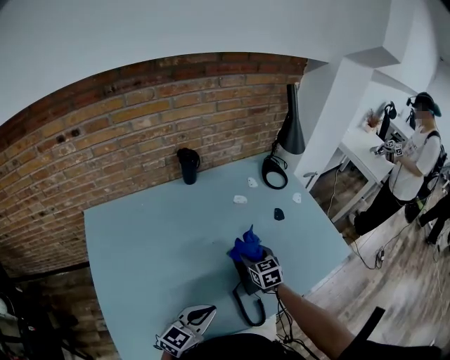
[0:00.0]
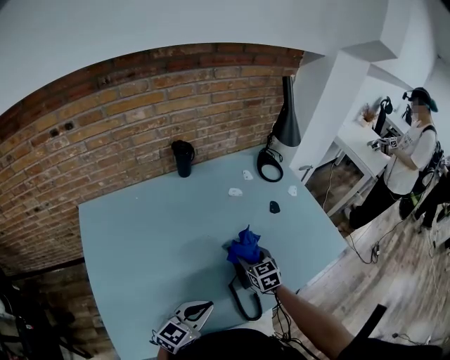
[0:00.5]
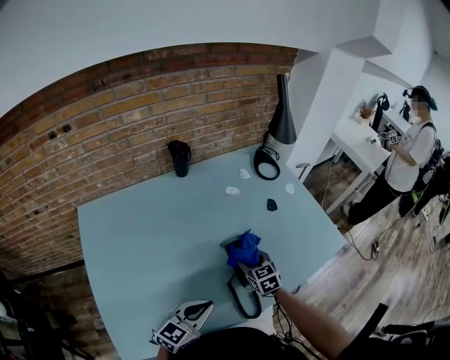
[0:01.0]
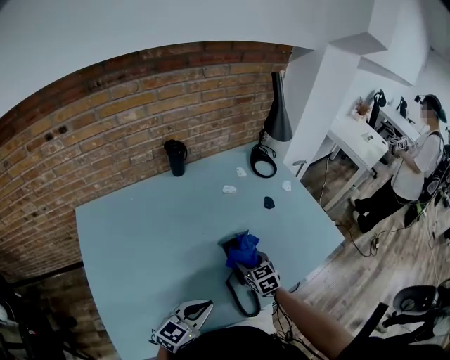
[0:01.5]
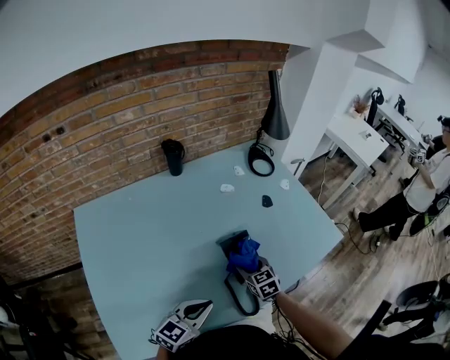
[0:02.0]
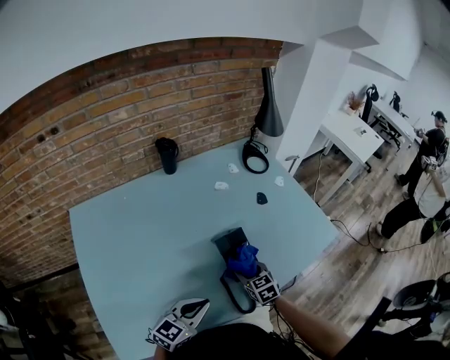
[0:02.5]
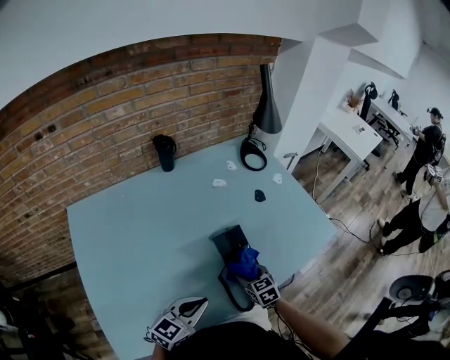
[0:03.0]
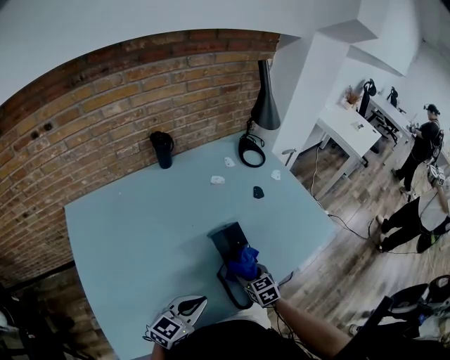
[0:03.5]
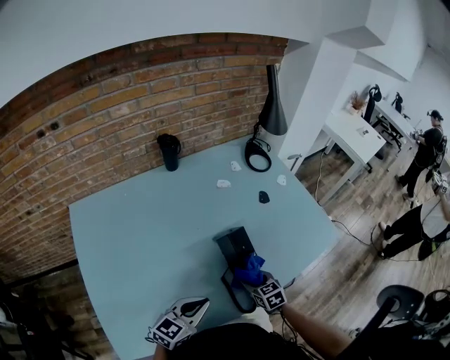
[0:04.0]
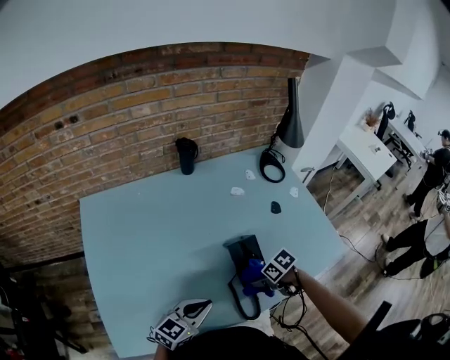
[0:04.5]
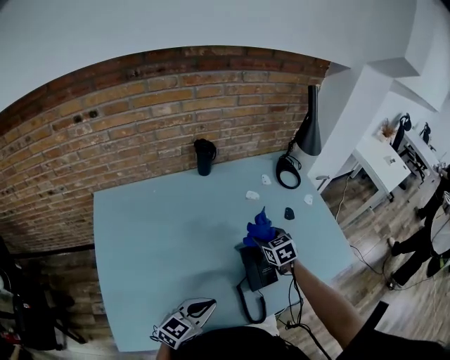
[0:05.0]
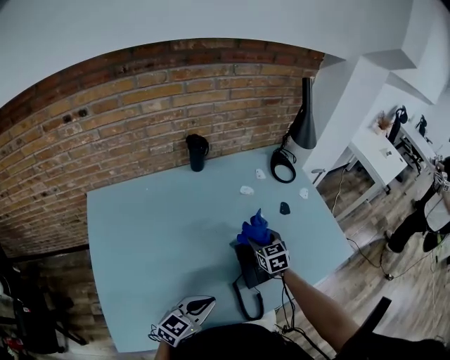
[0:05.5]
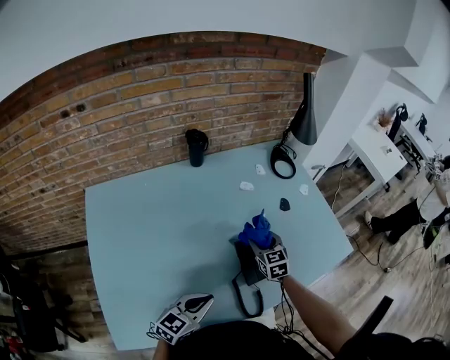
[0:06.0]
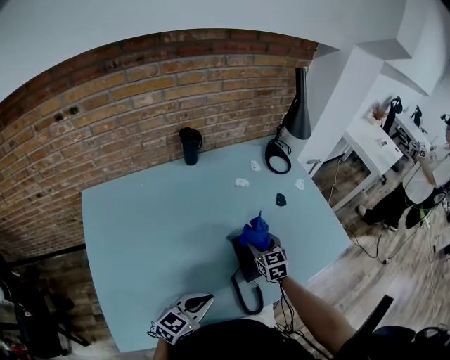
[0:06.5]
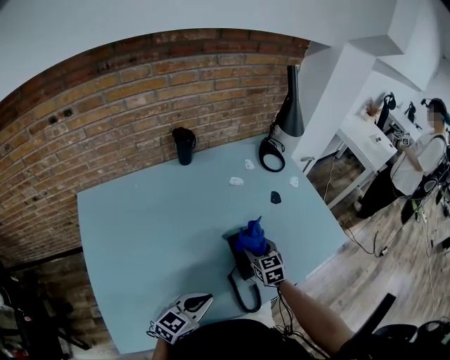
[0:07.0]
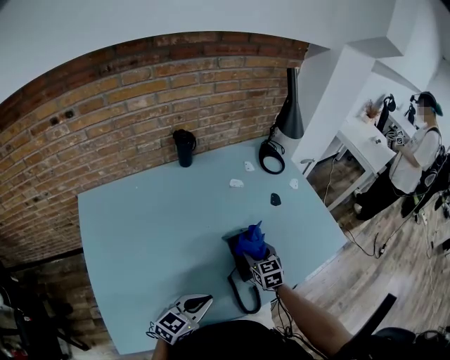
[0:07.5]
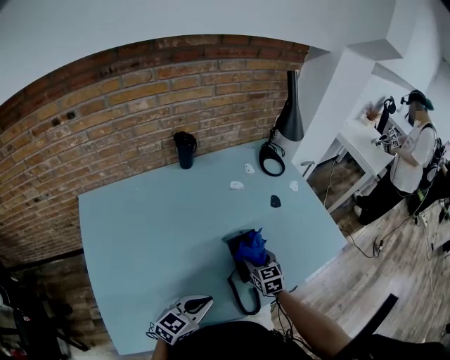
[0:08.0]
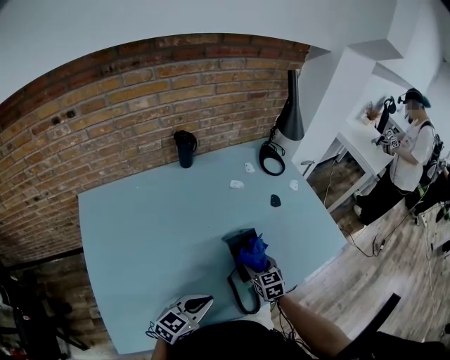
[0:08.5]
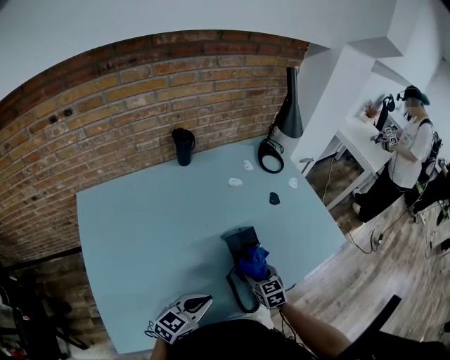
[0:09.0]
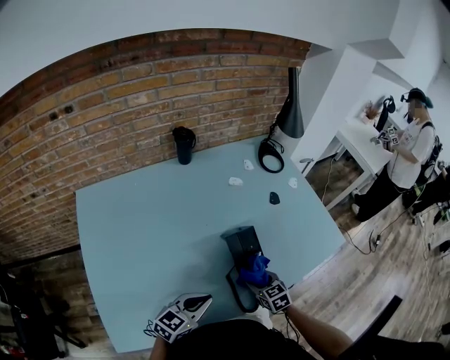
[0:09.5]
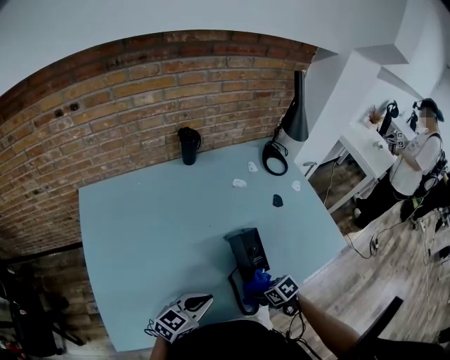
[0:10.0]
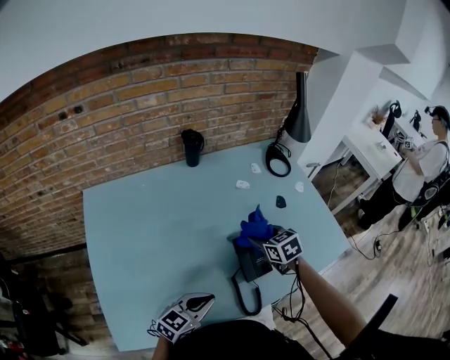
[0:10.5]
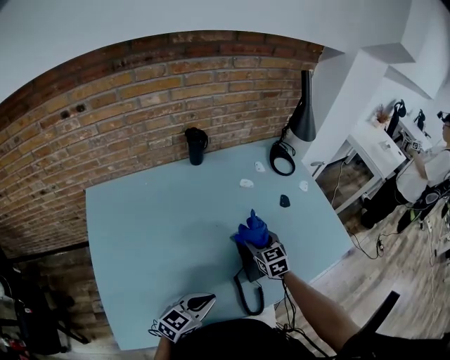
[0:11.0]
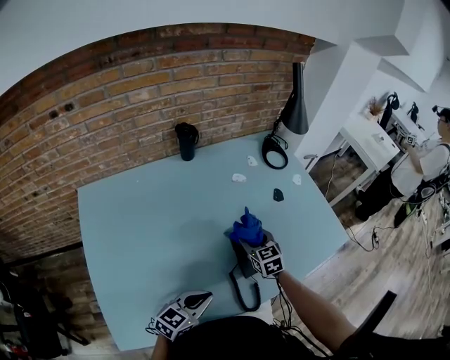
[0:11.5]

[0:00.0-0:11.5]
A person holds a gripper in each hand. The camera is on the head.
0:00.0 to 0:02.0: The right gripper shifts roughly 10 cm backward.
0:02.0 to 0:04.0: The right gripper is displaced backward by some 5 cm.
0:04.0 to 0:06.0: The right gripper moves approximately 20 cm.
0:06.0 to 0:07.5: The right gripper moves about 5 cm.
0:07.5 to 0:09.5: The right gripper goes some 10 cm backward and downward.
0:09.5 to 0:11.5: The right gripper shifts by about 15 cm.

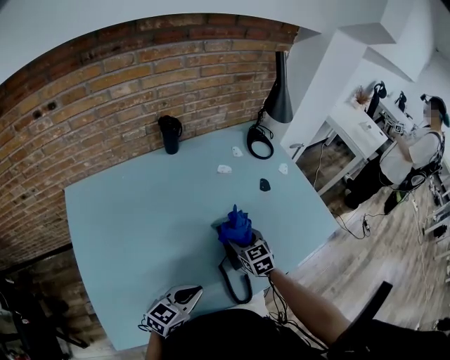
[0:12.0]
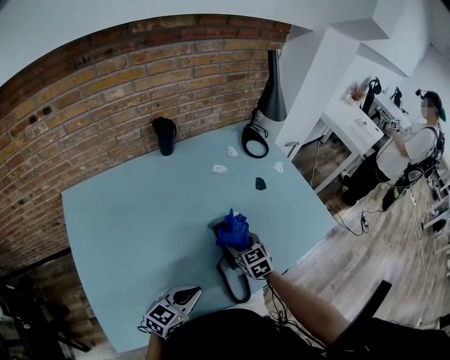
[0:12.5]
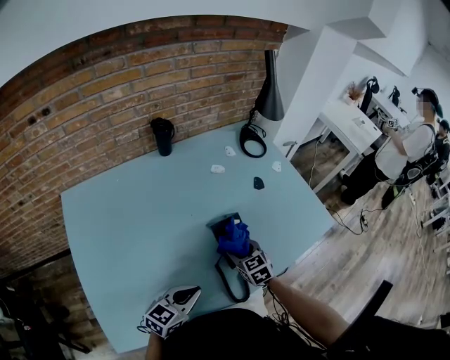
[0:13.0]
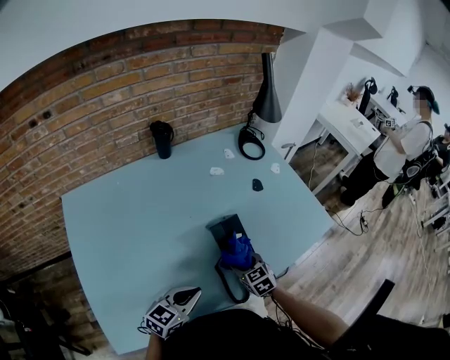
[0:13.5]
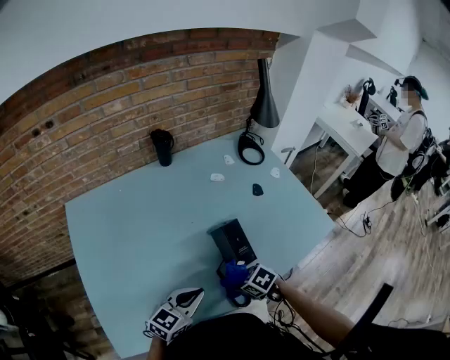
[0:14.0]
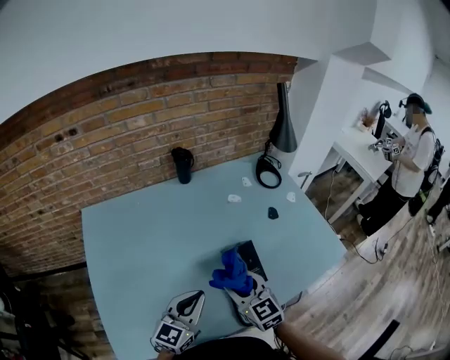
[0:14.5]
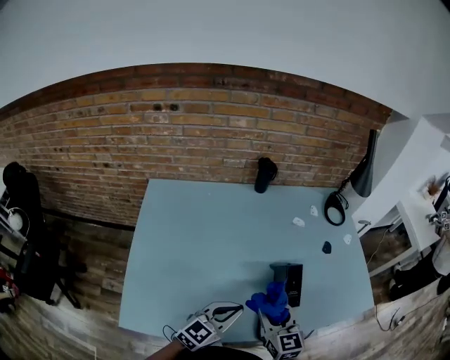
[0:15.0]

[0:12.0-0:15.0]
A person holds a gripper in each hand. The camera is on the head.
0:12.0 to 0:13.5: The right gripper shifts some 10 cm backward.
0:13.5 to 0:15.0: The left gripper shifts roughly 5 cm upward, and changes its angle by roughly 20 degrees, while the right gripper moves upward, about 15 cm, and changes its angle by roughly 30 degrees.

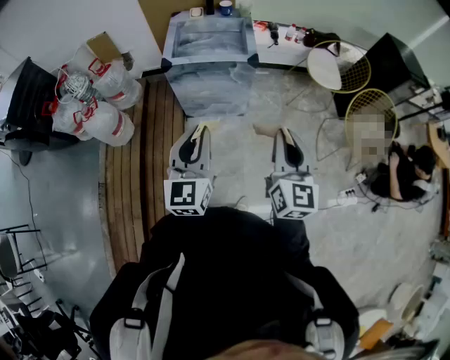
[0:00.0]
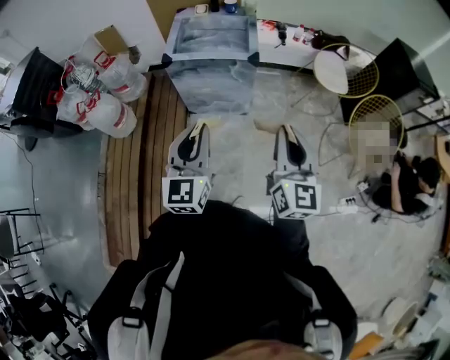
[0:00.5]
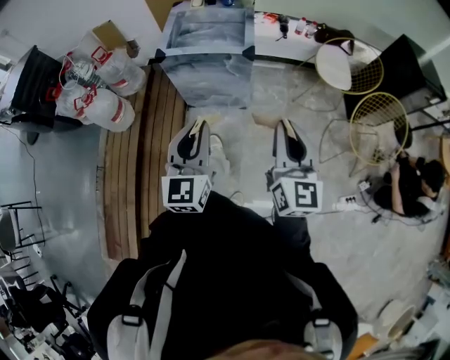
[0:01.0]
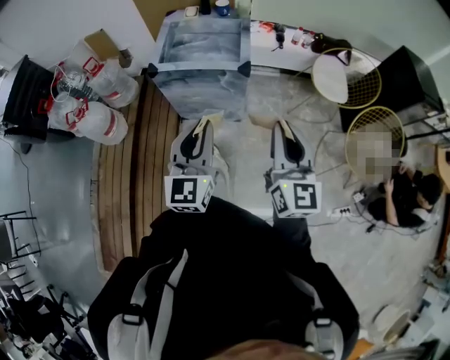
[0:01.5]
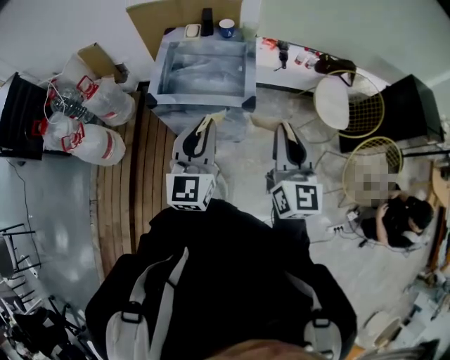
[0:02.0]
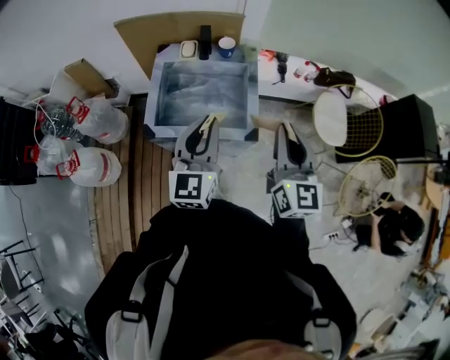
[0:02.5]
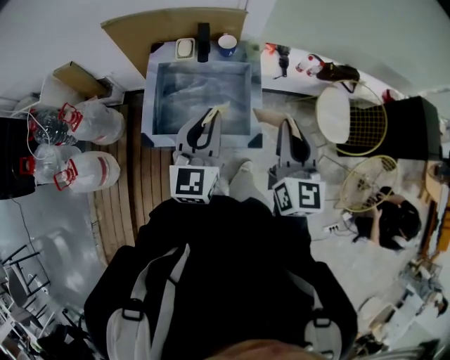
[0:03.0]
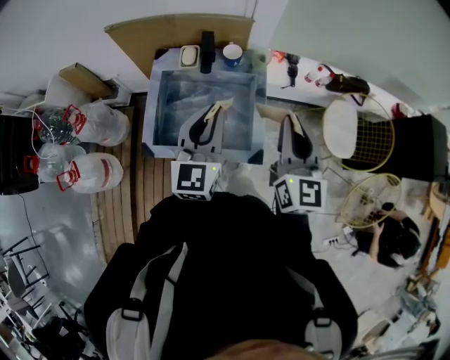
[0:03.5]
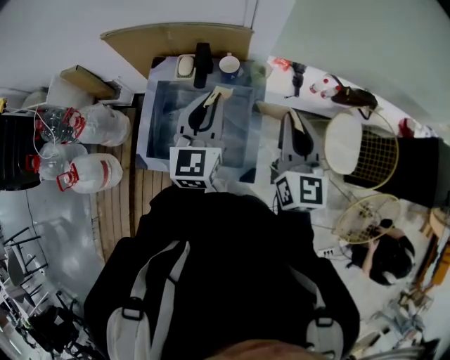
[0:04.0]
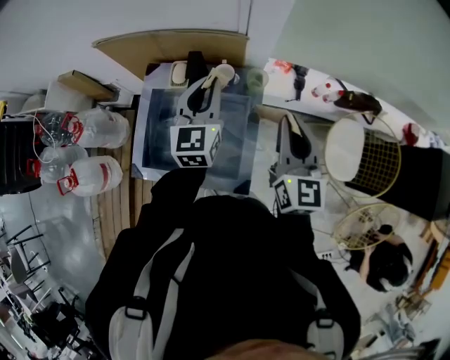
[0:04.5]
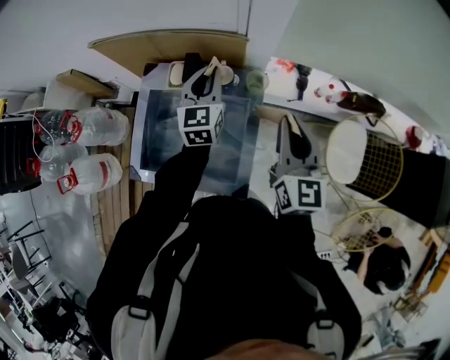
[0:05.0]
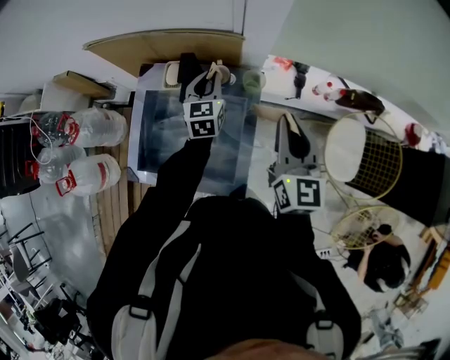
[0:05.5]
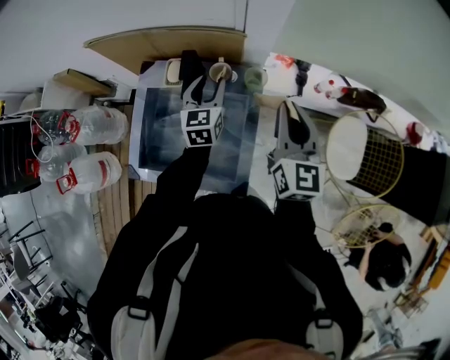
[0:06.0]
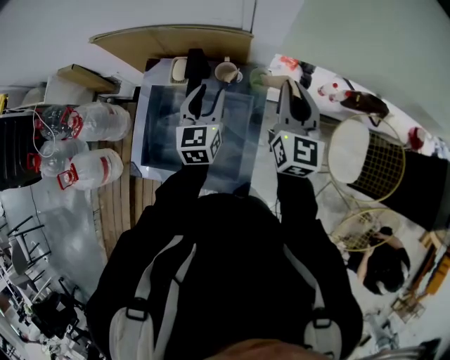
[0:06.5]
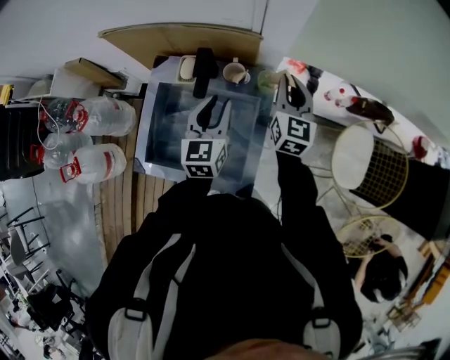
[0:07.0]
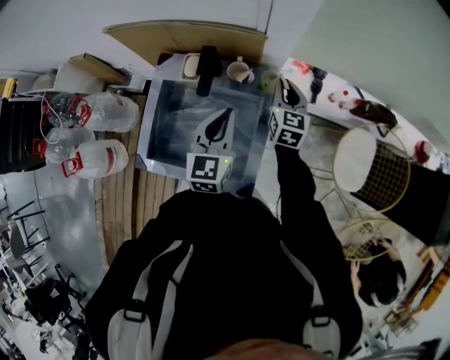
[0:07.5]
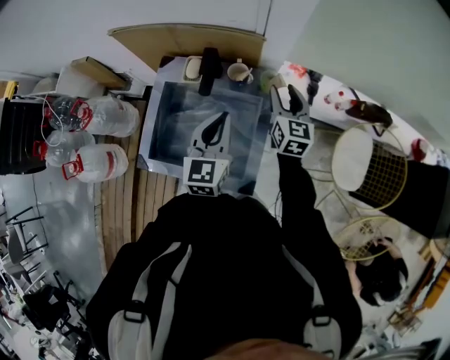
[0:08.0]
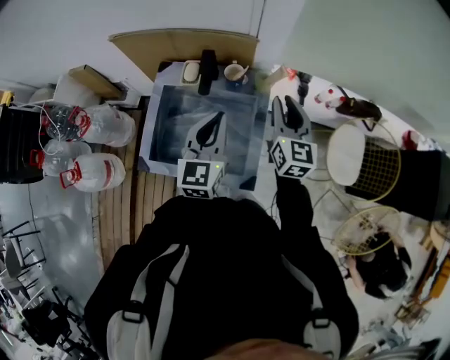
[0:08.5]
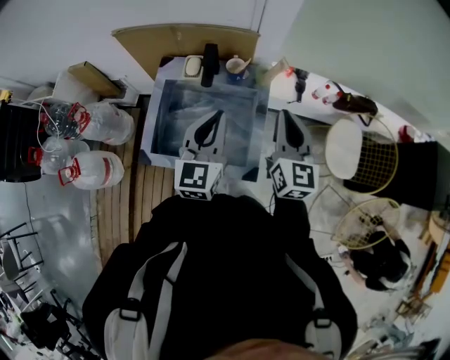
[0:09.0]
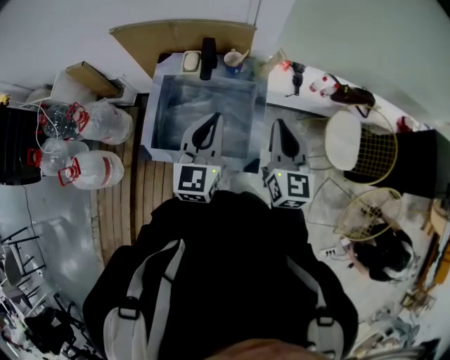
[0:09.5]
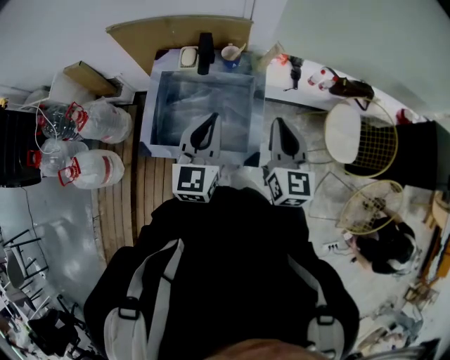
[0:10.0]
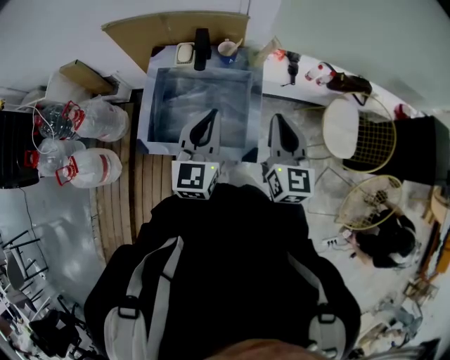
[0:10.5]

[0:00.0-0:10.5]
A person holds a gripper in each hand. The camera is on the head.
0:00.0 to 0:02.0: Both grippers move forward, about 30 cm.
0:02.0 to 0:04.0: Both grippers are carried forward, about 40 cm.
0:04.0 to 0:06.5: The left gripper heads downward and forward, covering approximately 15 cm, and opens up. The right gripper is displaced forward by about 15 cm.
0:06.5 to 0:08.5: The left gripper moves backward and upward, approximately 15 cm, and closes. Meanwhile the right gripper shifts some 10 cm backward, and reaches roughly 15 cm downward, then returns.
0:08.5 to 0:10.5: The left gripper shifts about 10 cm backward, while the right gripper shifts about 15 cm backward, and closes.

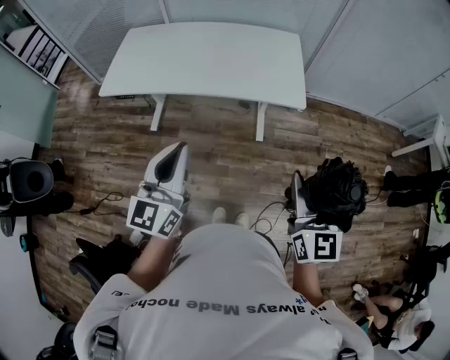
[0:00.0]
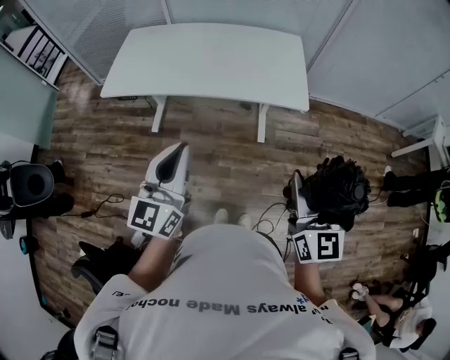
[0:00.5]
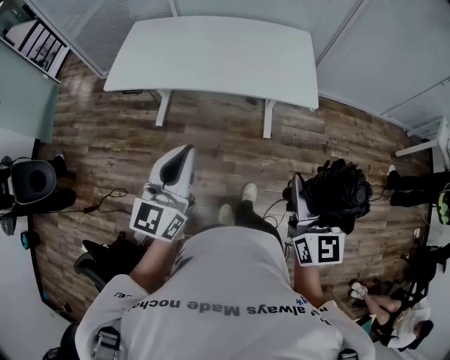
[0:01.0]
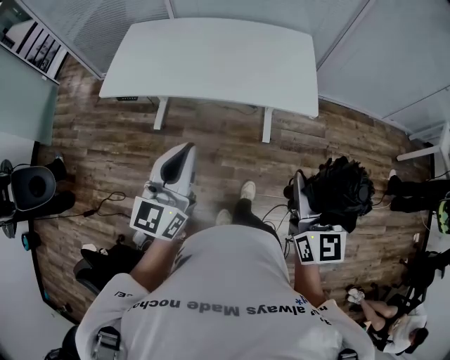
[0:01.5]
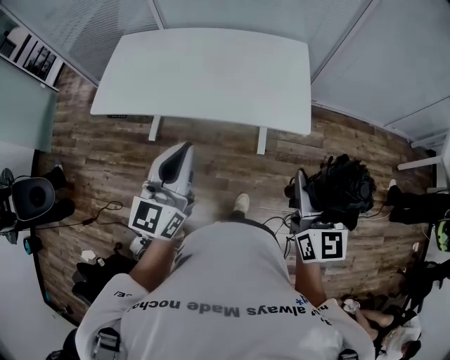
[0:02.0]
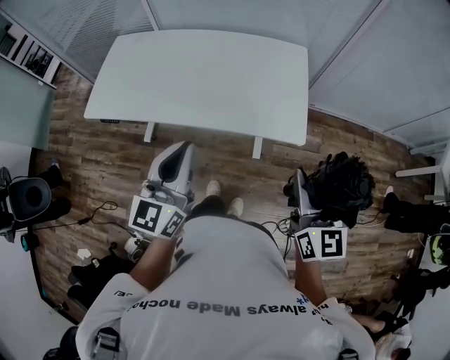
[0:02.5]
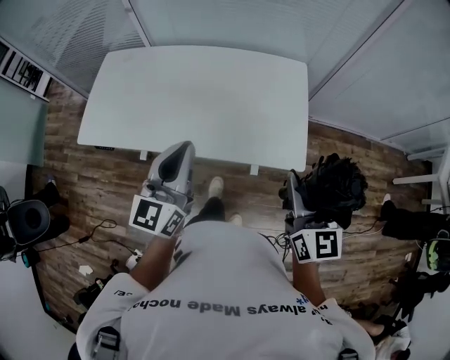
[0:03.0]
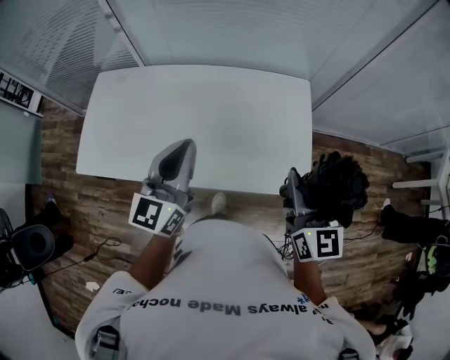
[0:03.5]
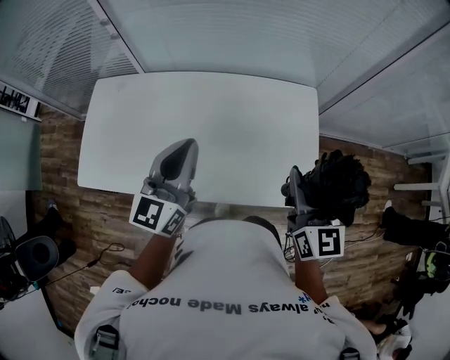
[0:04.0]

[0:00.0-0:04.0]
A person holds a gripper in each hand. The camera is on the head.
0:00.0 to 0:02.0: The two grippers go approximately 20 cm forward.
0:02.0 to 0:04.0: The two grippers travel together, forward, approximately 50 cm.
